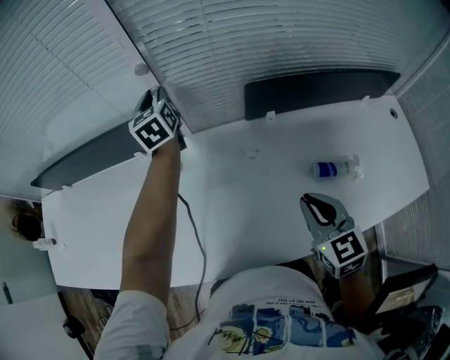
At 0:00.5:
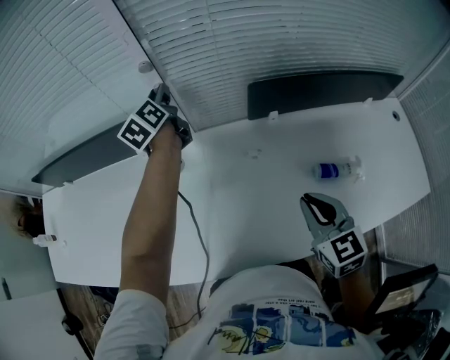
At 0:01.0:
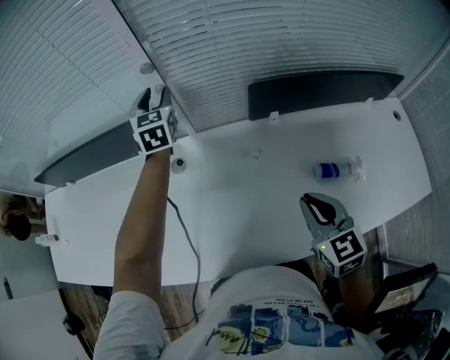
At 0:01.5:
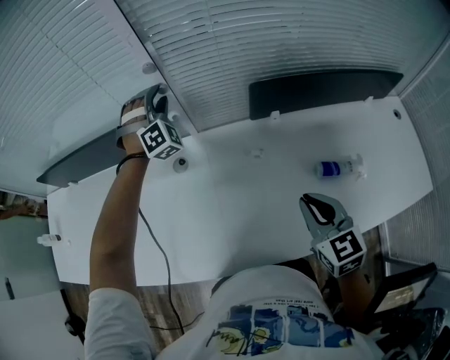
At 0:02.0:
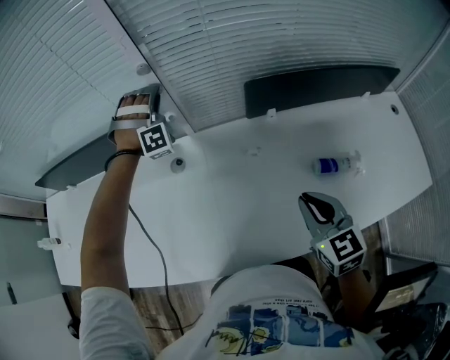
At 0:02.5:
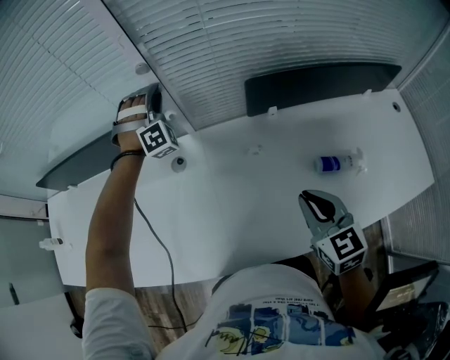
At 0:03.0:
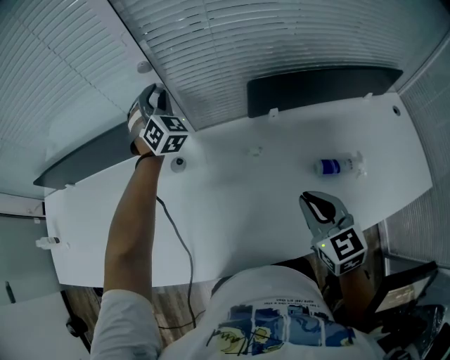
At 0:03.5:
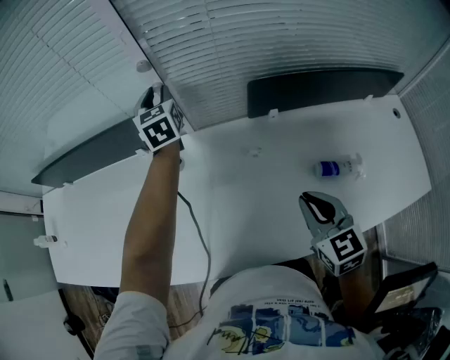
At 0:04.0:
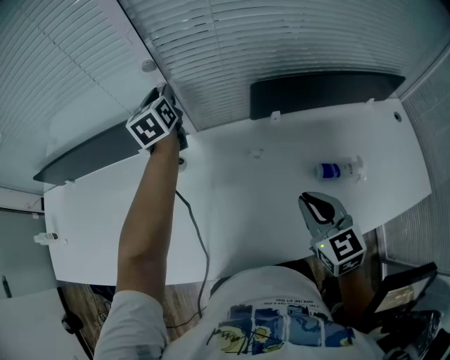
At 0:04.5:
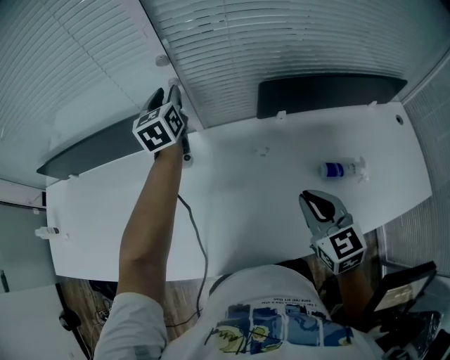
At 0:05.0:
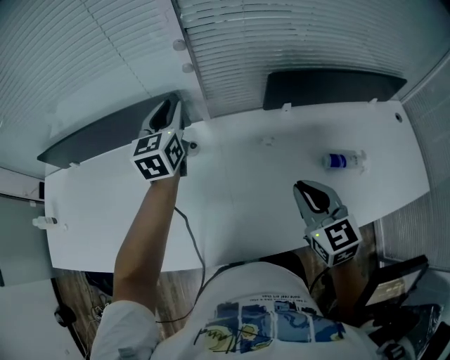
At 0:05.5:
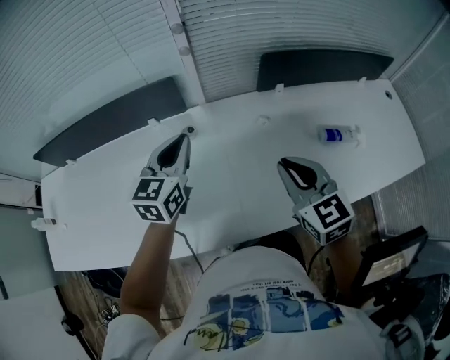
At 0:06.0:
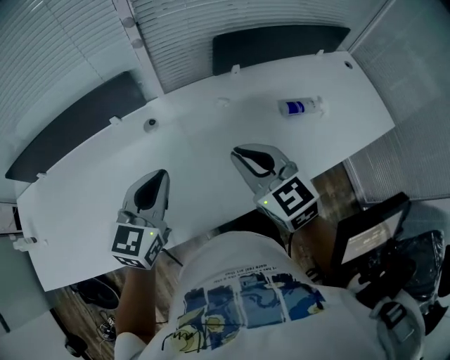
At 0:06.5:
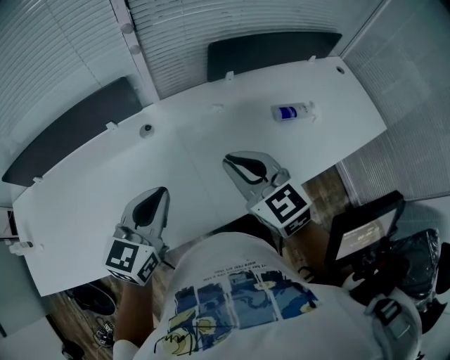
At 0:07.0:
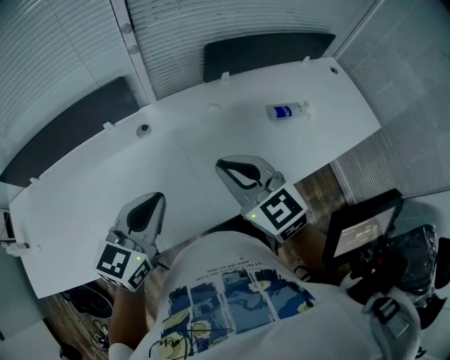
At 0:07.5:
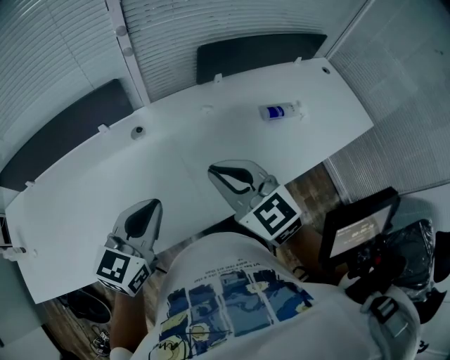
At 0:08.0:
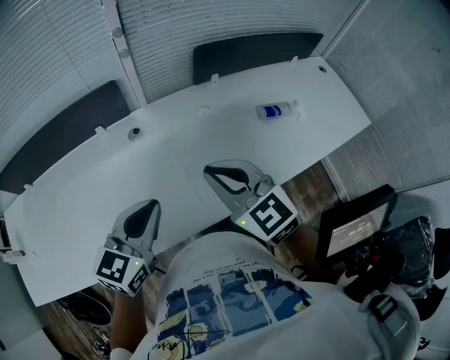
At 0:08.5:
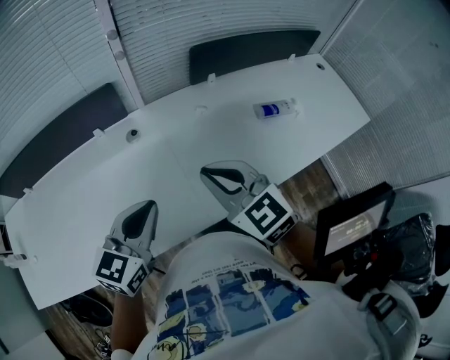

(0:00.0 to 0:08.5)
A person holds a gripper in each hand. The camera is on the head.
0:00.0 - 0:02.0: The left gripper rolls clockwise, seen from behind, by about 110 degrees.
0:02.0 - 0:04.0: The left gripper rotates around the line of its fingers by some 120 degrees, counterclockwise from behind.
0:04.0 - 0:06.5: The left gripper is displaced backward by approximately 40 cm, changes its angle by about 40 degrees, and closes up. Meanwhile the right gripper is displaced to the left and backward by some 20 cm.
0:06.5 - 0:08.5: The right gripper moves about 5 cm.

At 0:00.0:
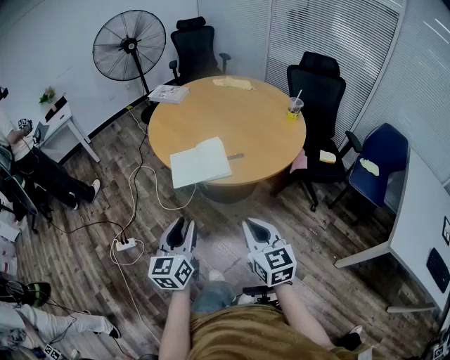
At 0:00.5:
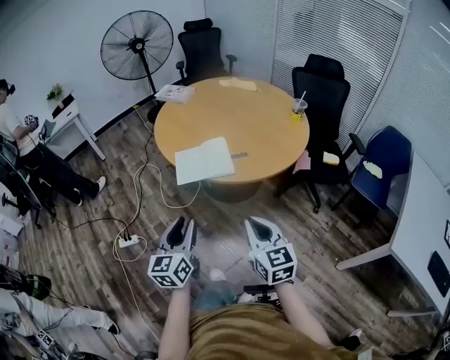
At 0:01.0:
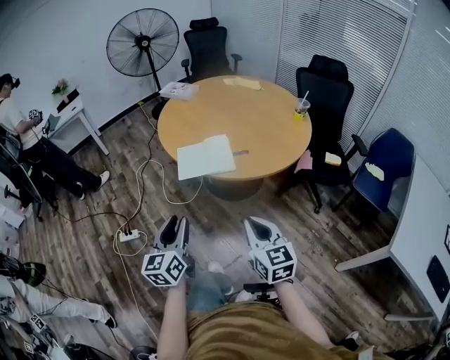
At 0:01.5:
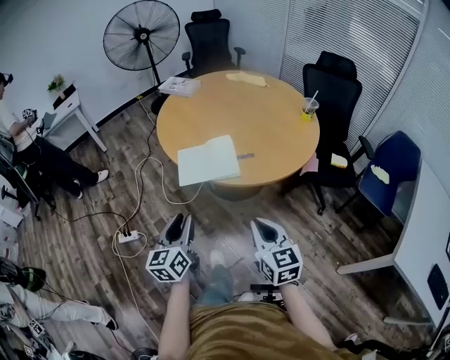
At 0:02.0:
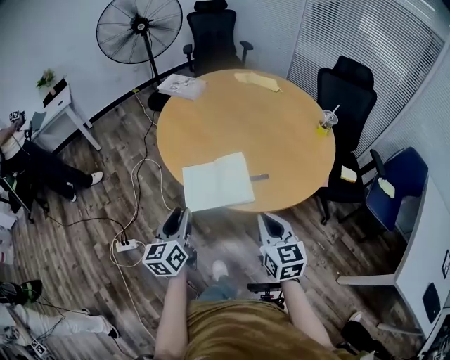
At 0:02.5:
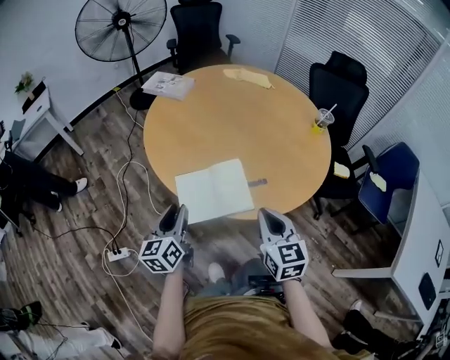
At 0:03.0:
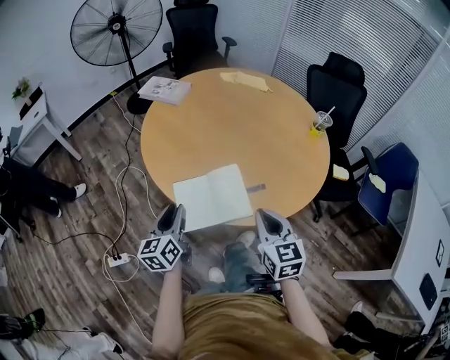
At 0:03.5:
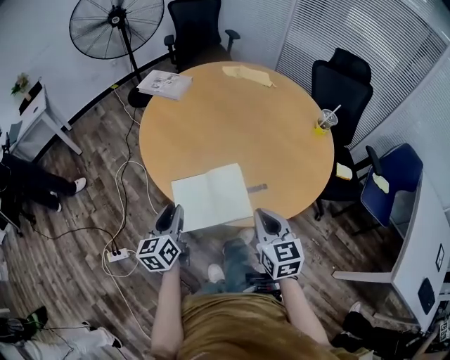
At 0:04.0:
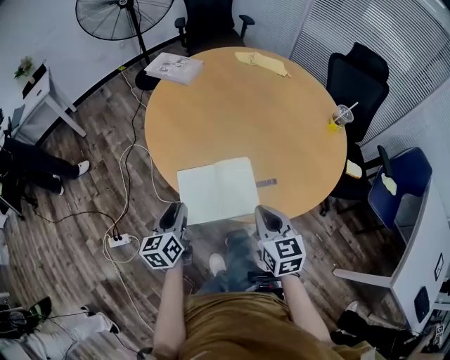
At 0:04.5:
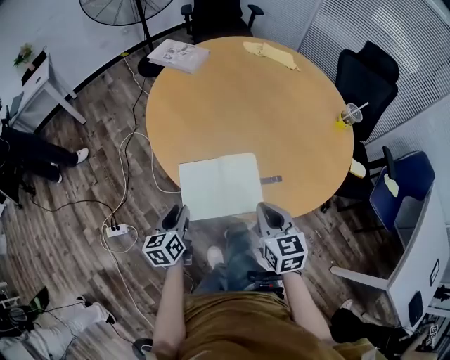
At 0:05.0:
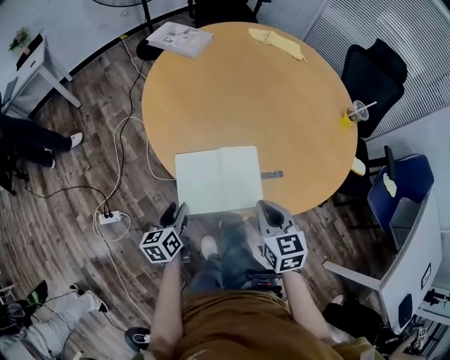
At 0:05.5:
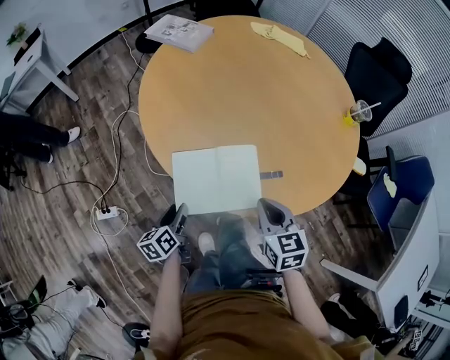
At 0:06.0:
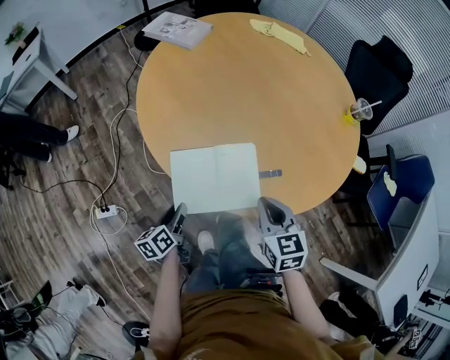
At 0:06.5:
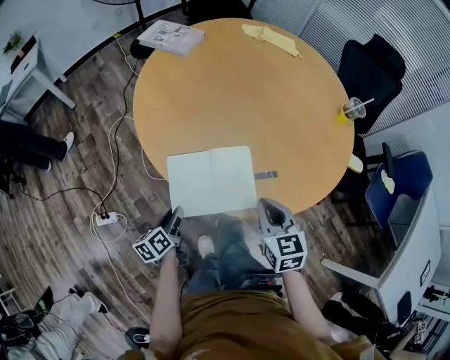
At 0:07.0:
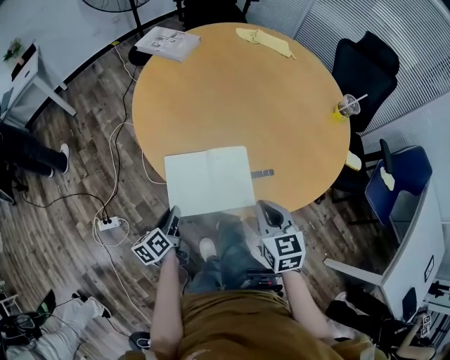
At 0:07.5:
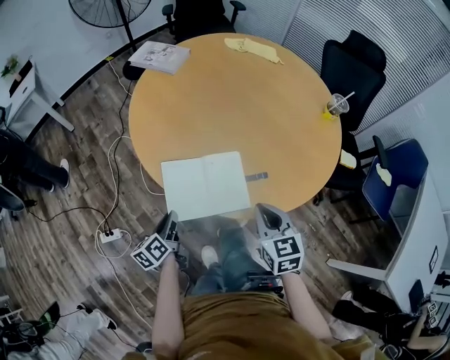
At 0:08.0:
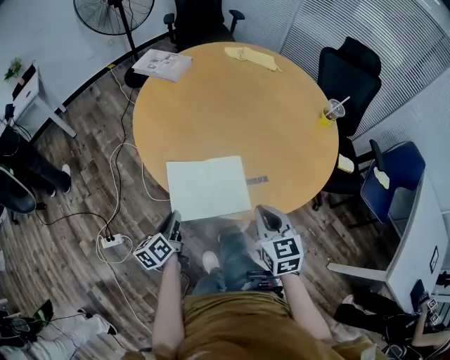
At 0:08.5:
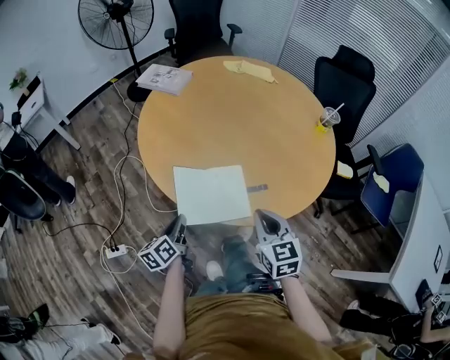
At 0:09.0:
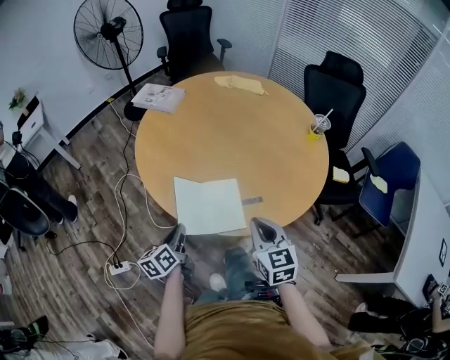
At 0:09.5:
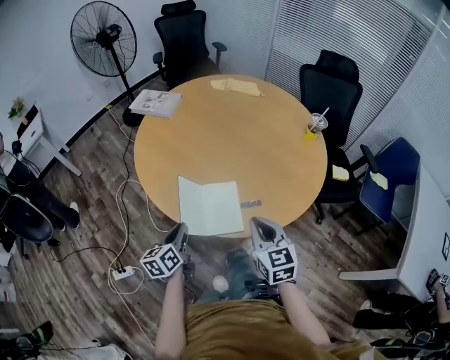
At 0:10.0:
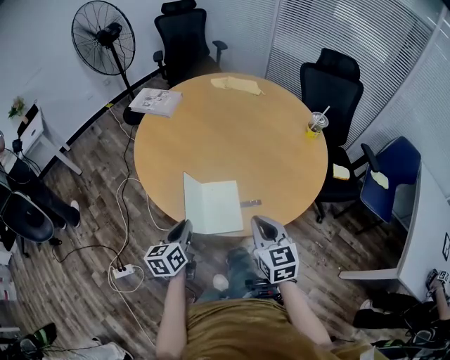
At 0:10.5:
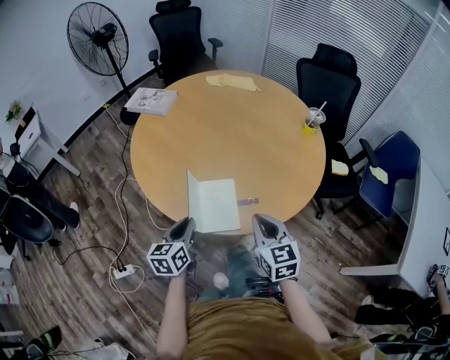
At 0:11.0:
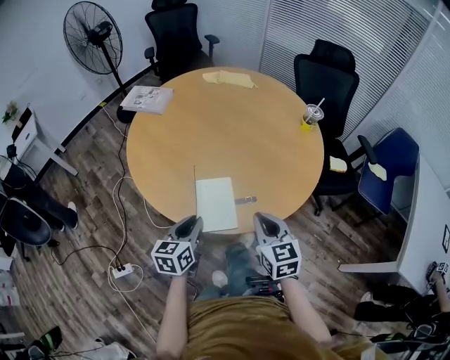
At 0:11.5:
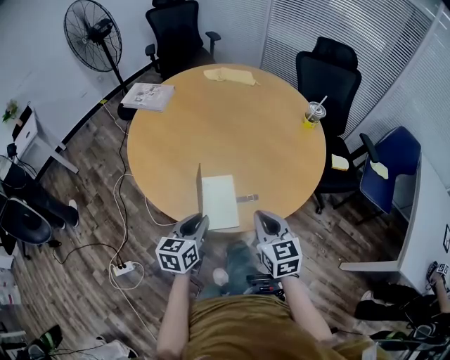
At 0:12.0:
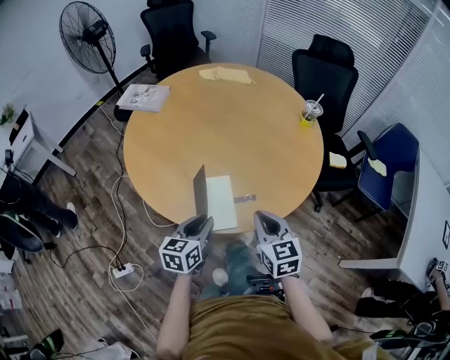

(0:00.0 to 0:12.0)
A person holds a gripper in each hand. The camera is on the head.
0:00.0 - 0:02.0: The grippers both shift forward by roughly 20 cm.
0:02.0 - 0:04.0: The grippers both shift forward and downward by about 15 cm.
0:04.0 - 0:06.0: The right gripper moves downward, about 5 cm, while the left gripper travels downward by roughly 15 cm, and changes its angle by roughly 30 degrees.
0:06.0 - 0:08.0: The right gripper shifts by roughly 5 cm; the left gripper moves upward, some 5 cm, and closes its fingers.
0:08.0 - 0:10.0: The left gripper goes approximately 5 cm upward, and changes its angle by some 30 degrees.
0:10.0 - 0:12.0: The left gripper travels to the right by roughly 10 cm.

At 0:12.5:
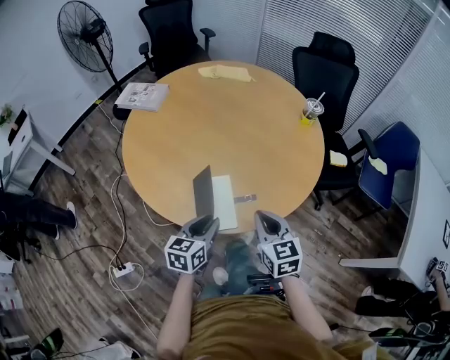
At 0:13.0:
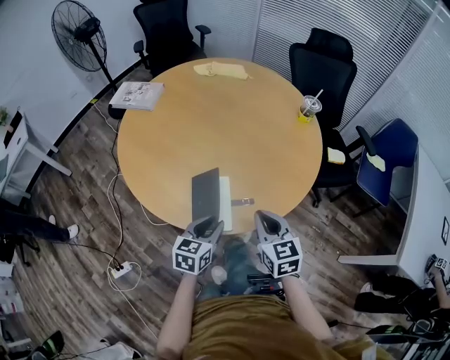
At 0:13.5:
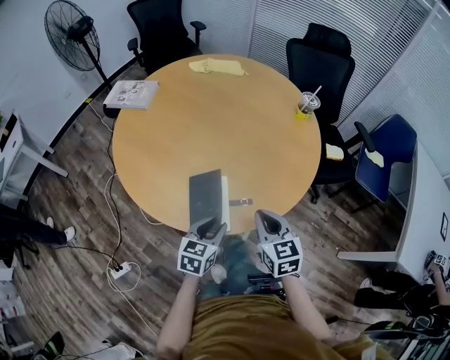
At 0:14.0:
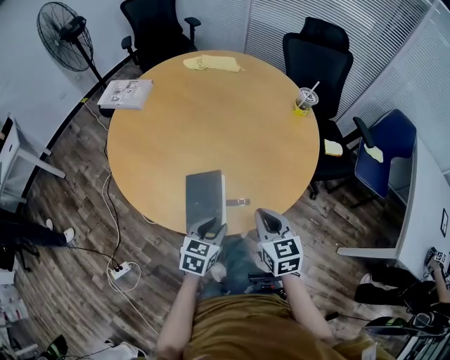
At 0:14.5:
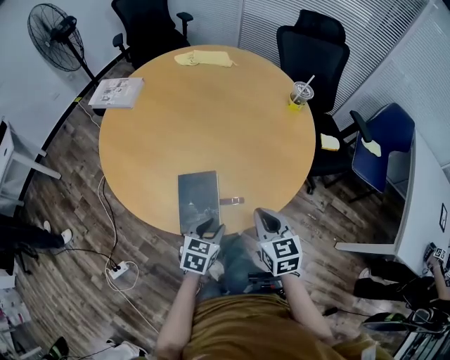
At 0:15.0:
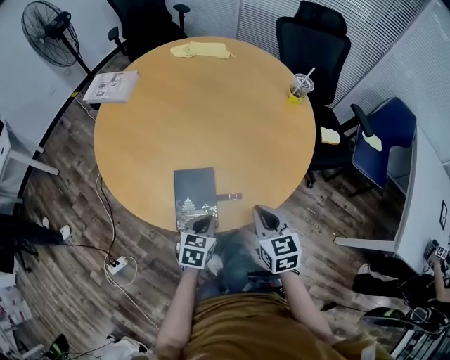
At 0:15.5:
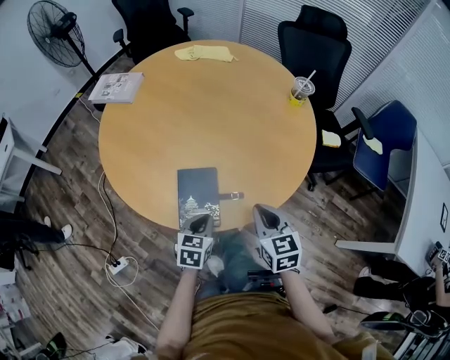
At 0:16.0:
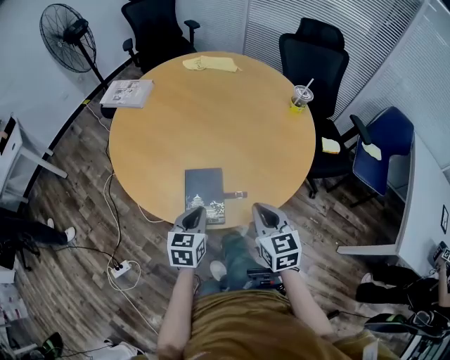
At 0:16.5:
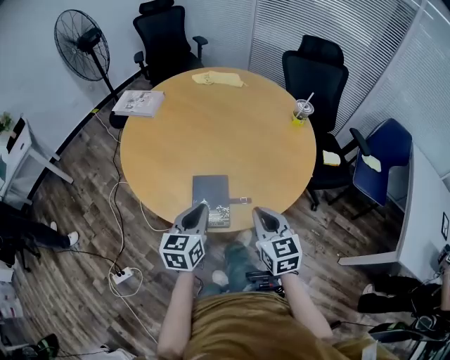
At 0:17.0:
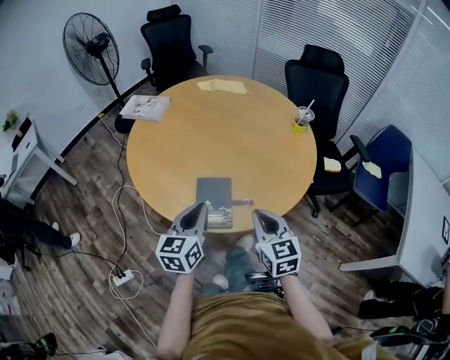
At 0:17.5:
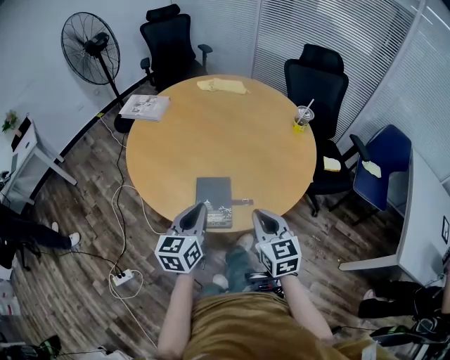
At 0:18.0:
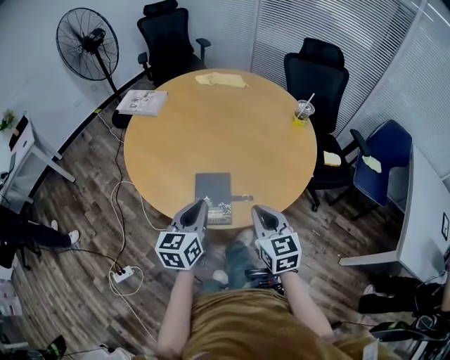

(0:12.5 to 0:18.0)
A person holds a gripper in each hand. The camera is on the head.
0:12.5 - 0:14.5: The right gripper ends up some 5 cm from where it was. The left gripper travels downward and to the right by approximately 10 cm, and rotates roughly 20 degrees.
0:14.5 - 0:16.0: The left gripper shifts some 10 cm to the left and upward, and closes.
0:16.0 - 0:18.0: The right gripper shifts by some 5 cm. The left gripper shifts some 10 cm upward.

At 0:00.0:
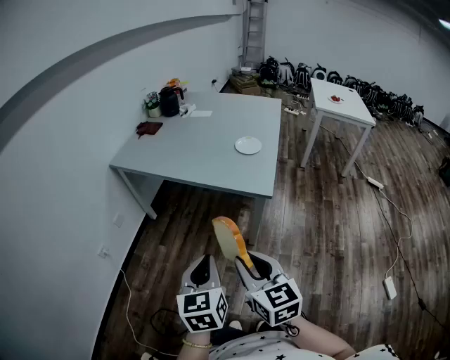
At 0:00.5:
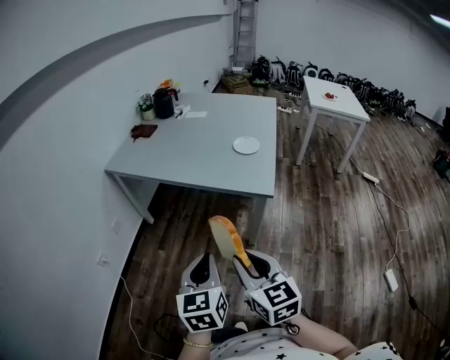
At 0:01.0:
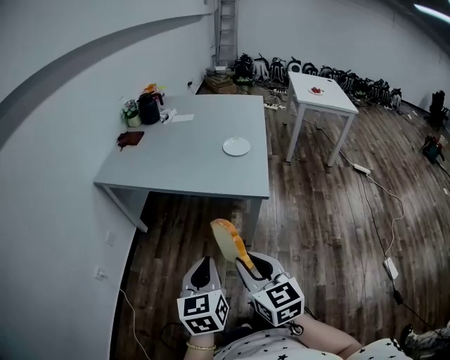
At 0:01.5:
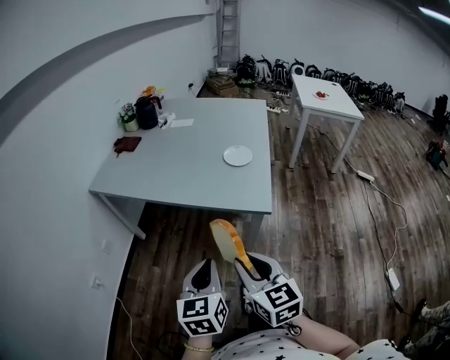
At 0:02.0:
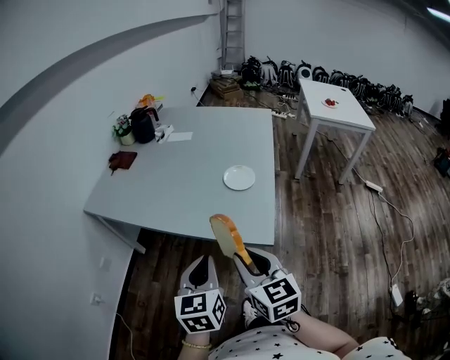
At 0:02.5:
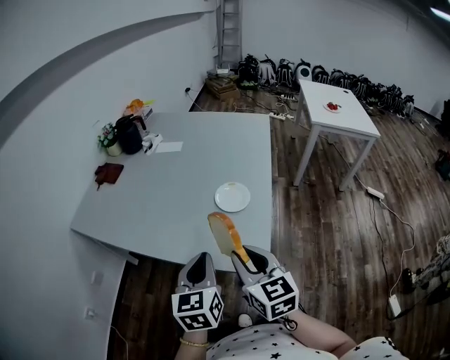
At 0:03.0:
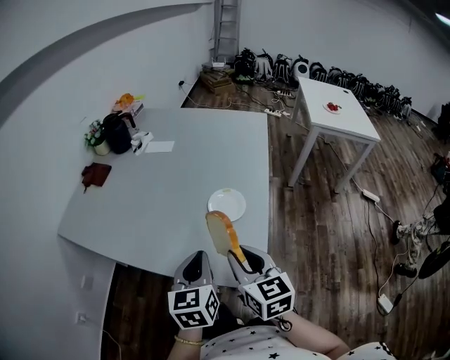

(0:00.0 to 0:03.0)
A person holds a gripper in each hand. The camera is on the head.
0:00.0 - 0:01.5: The two grippers go some 10 cm forward.
0:01.5 - 0:03.0: Both grippers move forward, about 30 cm.
